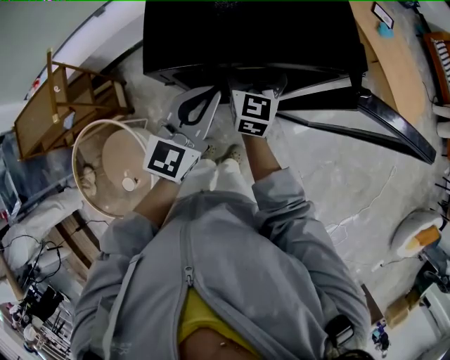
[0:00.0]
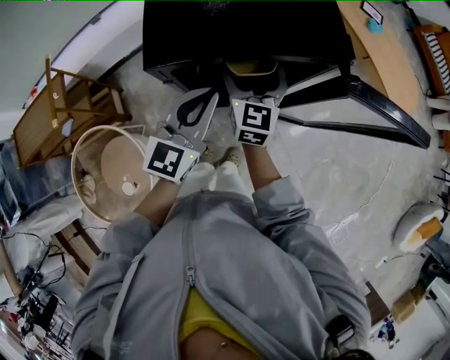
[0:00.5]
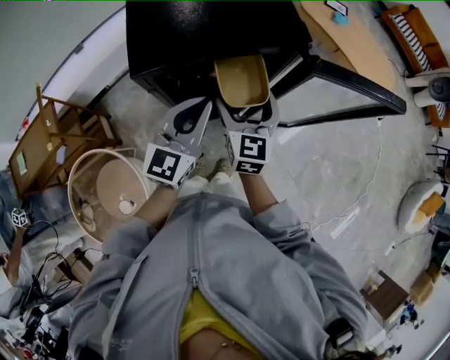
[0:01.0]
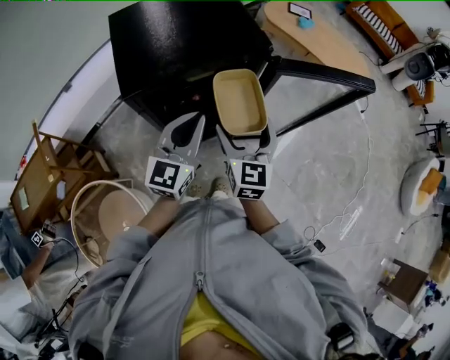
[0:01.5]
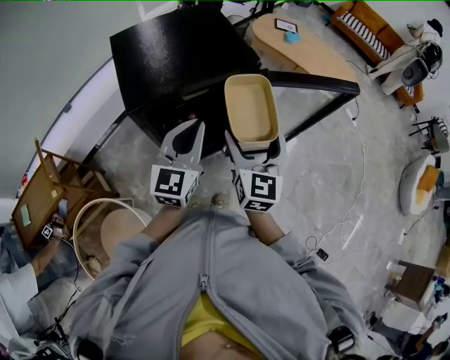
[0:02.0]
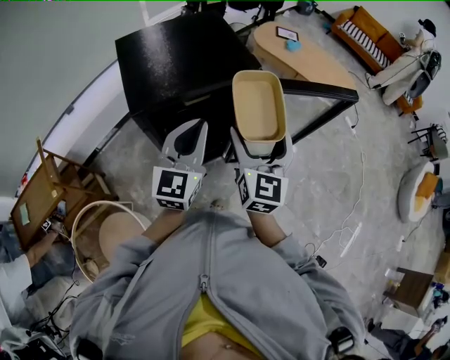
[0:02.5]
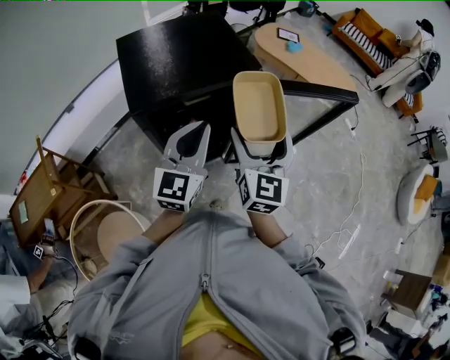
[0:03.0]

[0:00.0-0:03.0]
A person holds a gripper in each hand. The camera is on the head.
0:00.0 to 0:01.5: The right gripper moves backward, to the right and upward, approximately 25 cm. The left gripper travels to the right by approximately 5 cm.
0:01.5 to 0:03.0: The left gripper shifts about 5 cm upward. The right gripper heads upward, covering roughly 10 cm.

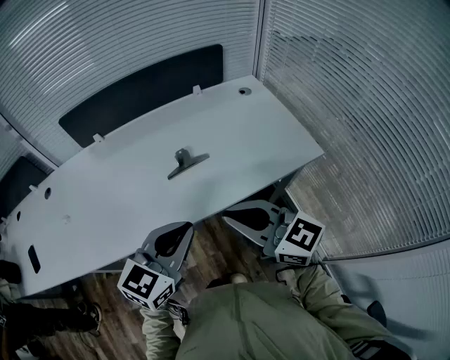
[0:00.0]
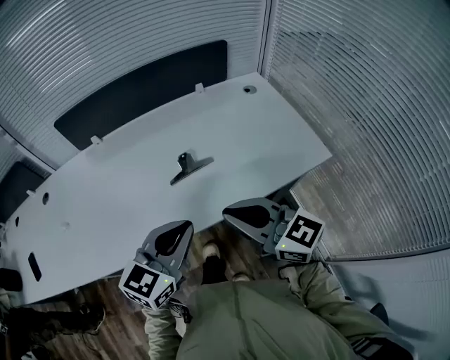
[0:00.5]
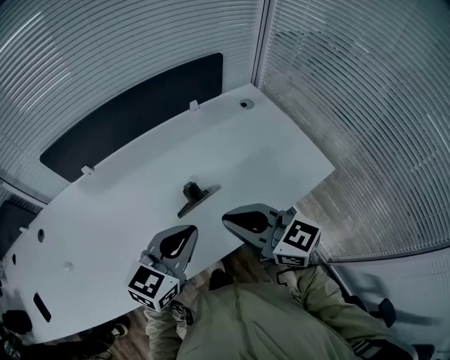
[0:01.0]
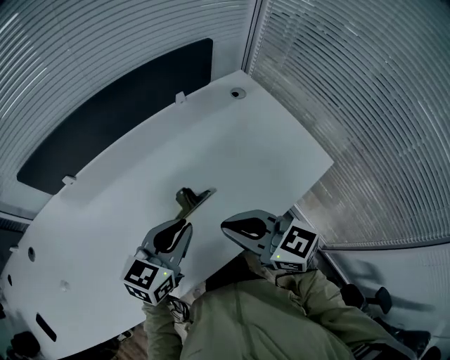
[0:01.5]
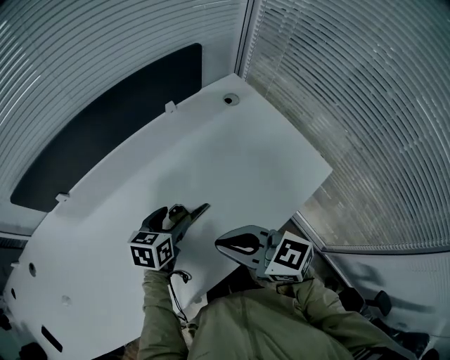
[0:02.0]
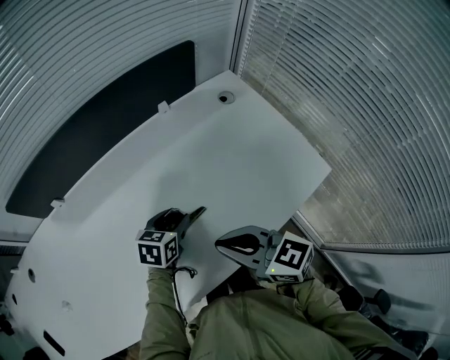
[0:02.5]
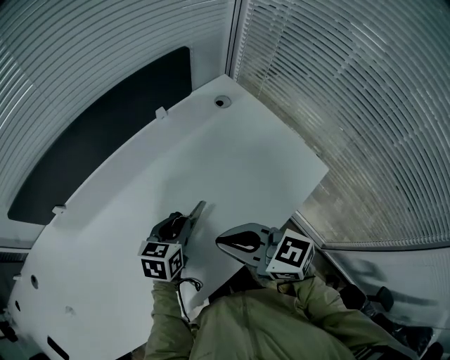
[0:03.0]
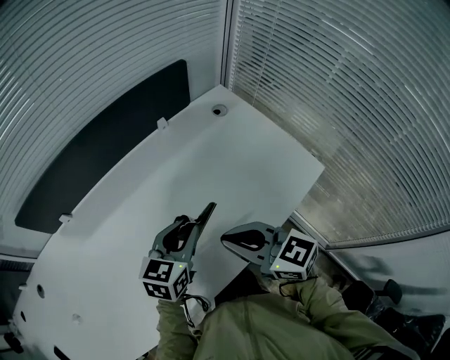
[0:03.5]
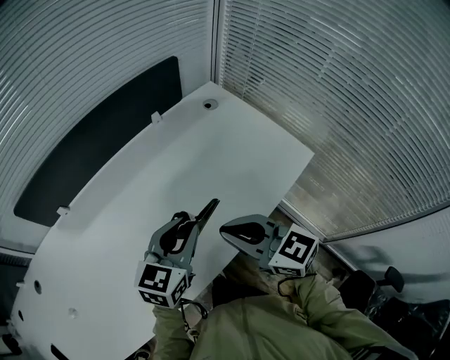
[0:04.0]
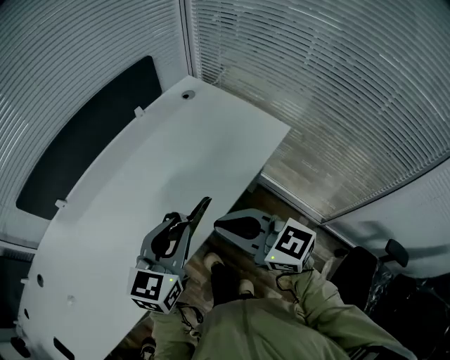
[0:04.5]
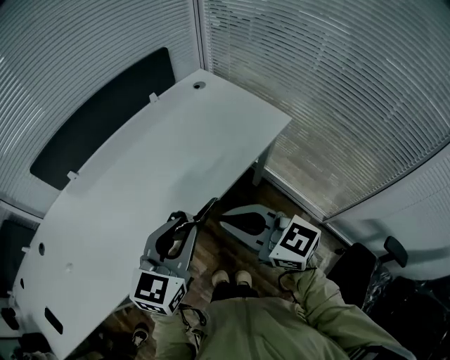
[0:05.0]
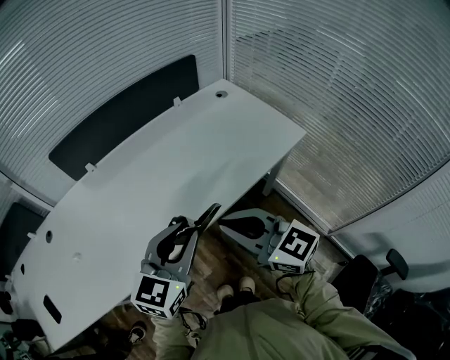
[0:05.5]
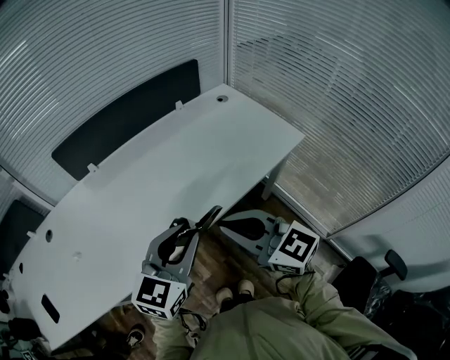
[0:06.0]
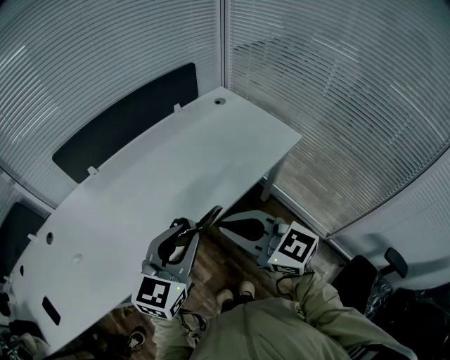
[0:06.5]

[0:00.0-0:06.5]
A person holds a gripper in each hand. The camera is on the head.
0:00.0 to 0:02.0: The left gripper heads forward and downward, covering some 35 cm, swivels about 30 degrees, and opens; the right gripper moves forward and downward, roughly 20 cm.
0:02.0 to 0:04.5: The right gripper moves backward and upward, some 15 cm, and swivels some 20 degrees; the left gripper heads backward and upward, covering some 25 cm, changes its angle by roughly 30 degrees, and closes.
0:04.5 to 0:06.5: The two grippers go some 15 cm backward, to the left and upward.

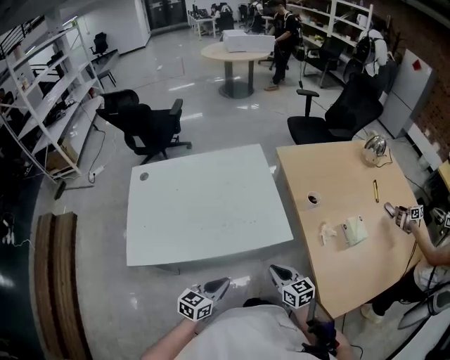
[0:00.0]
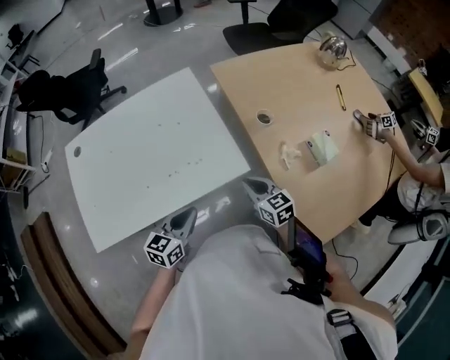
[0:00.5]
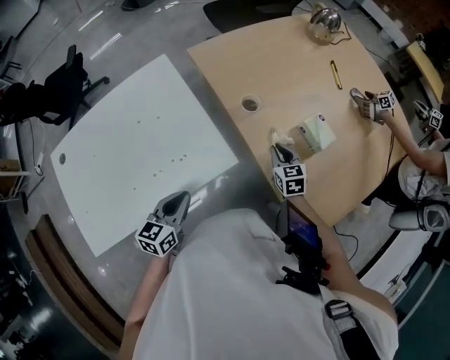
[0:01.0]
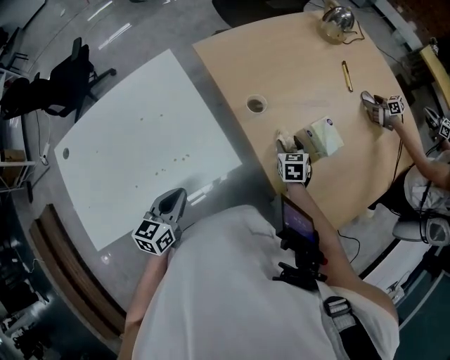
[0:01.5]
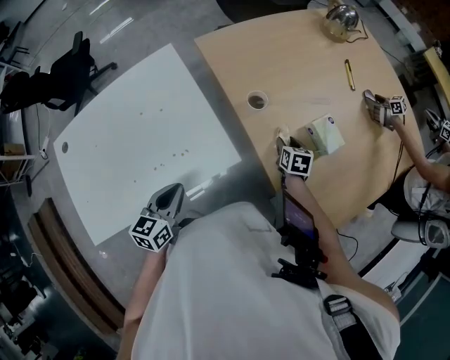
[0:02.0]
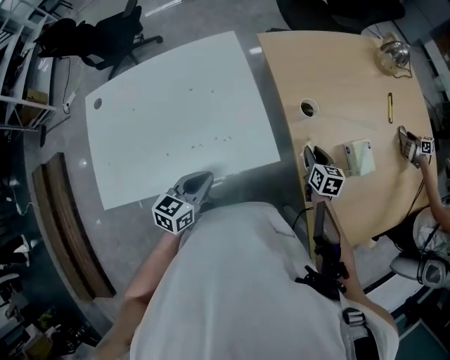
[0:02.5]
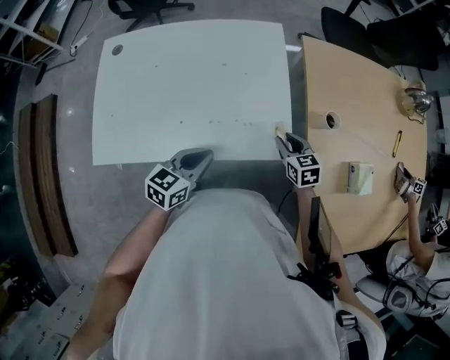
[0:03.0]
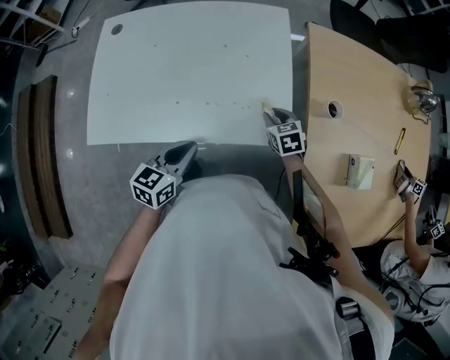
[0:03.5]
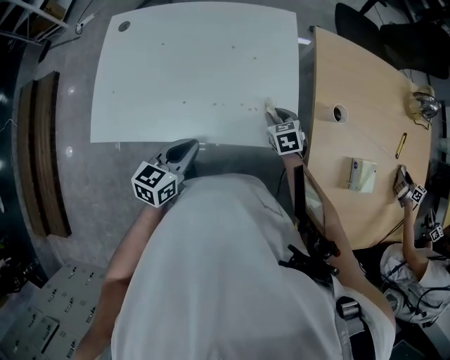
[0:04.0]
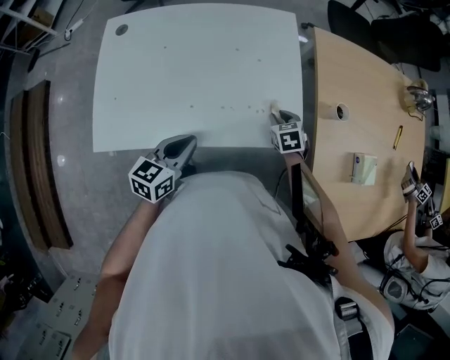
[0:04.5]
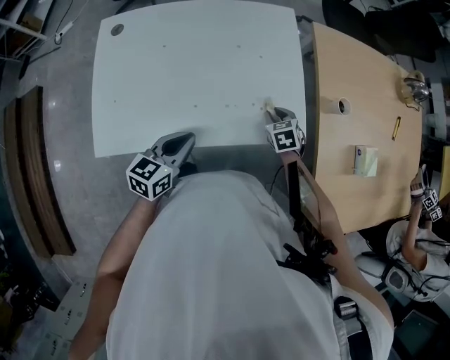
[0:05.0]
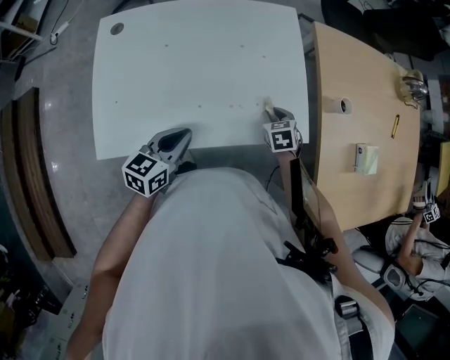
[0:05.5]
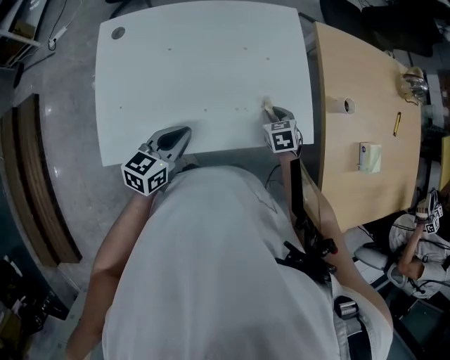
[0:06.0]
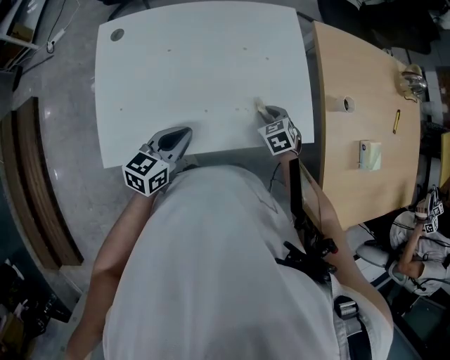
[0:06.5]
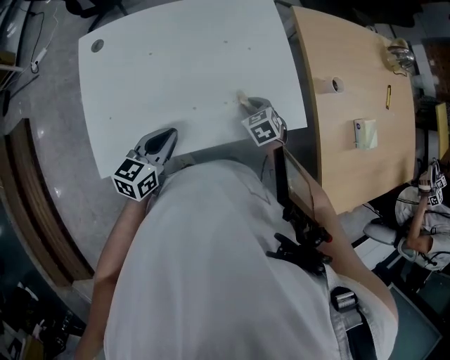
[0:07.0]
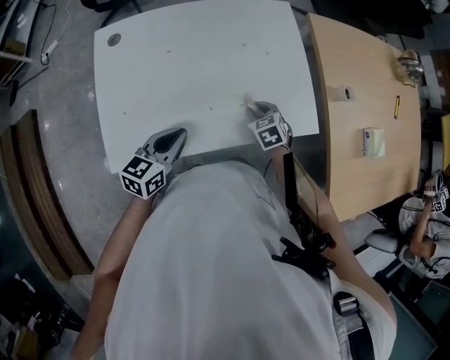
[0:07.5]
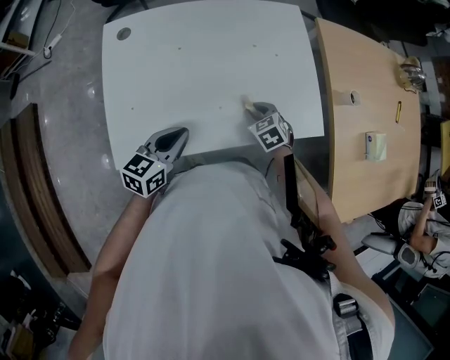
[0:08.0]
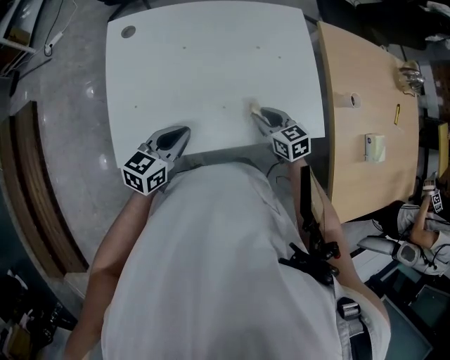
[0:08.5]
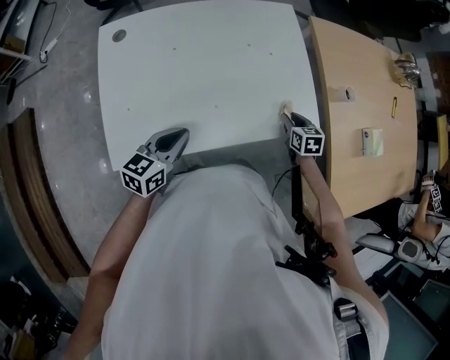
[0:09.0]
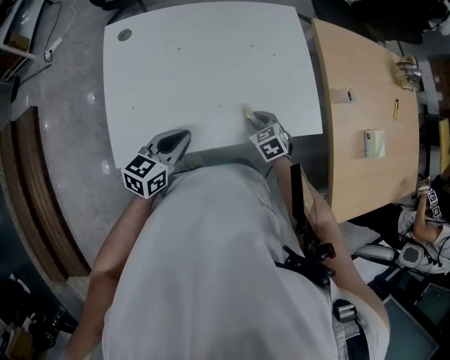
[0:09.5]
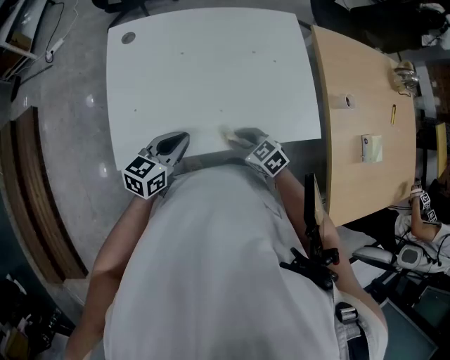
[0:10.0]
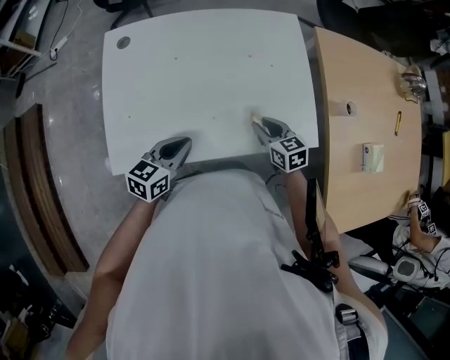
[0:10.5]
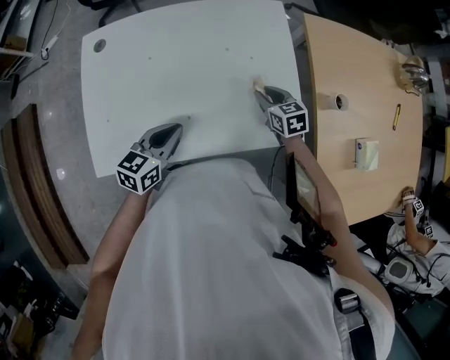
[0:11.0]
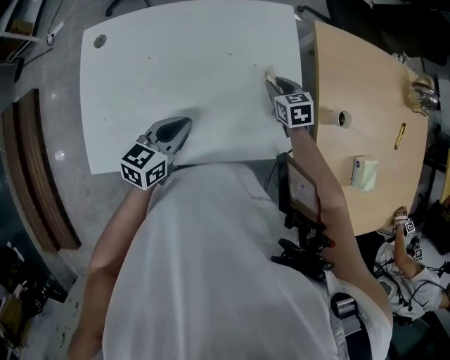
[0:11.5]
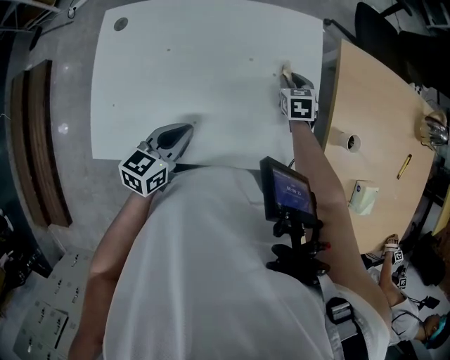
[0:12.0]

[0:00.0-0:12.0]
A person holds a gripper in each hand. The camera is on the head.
0:00.0 to 0:02.0: The right gripper ends up about 35 cm from where it was, swivels about 50 degrees, and opens up; the left gripper moves about 20 cm.
0:02.0 to 0:04.0: The left gripper changes place by approximately 15 cm. Meanwhile the right gripper changes place by approximately 30 cm, and rotates around the line of its fingers by roughly 50 degrees, counterclockwise from behind.
0:04.0 to 0:06.0: The right gripper moves to the left, approximately 5 cm; the left gripper travels to the left by roughly 15 cm.
0:06.0 to 0:08.0: The right gripper is displaced to the left by approximately 10 cm, while the left gripper is displaced to the left by some 5 cm.
0:08.0 to 0:10.0: The right gripper moves roughly 10 cm, and rotates roughly 20 degrees.
0:10.0 to 0:12.0: The left gripper moves to the right and forward, about 15 cm. Meanwhile the right gripper travels forward and to the right by approximately 40 cm, and changes its angle by roughly 30 degrees.

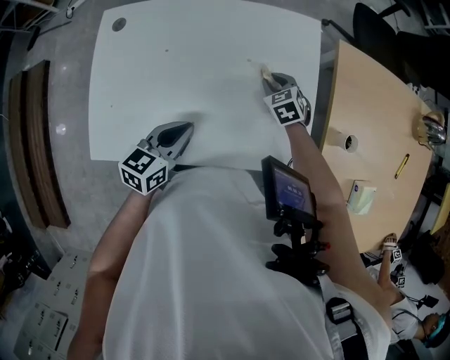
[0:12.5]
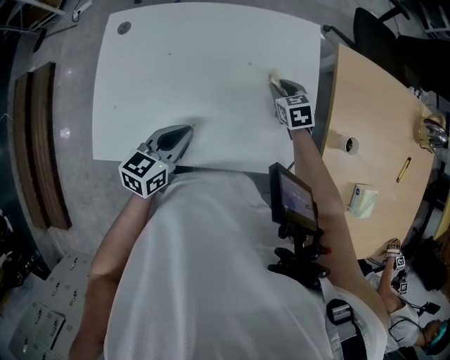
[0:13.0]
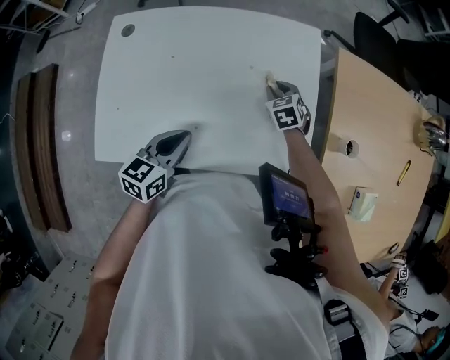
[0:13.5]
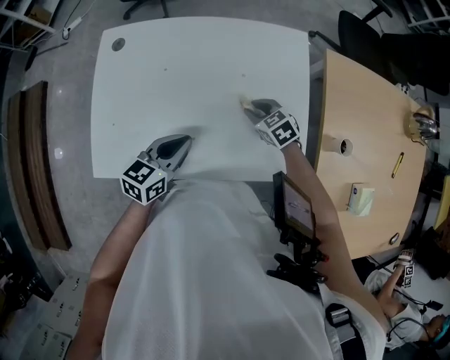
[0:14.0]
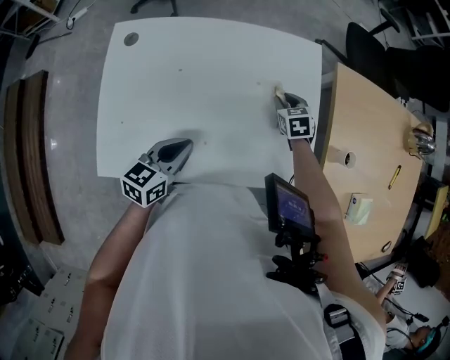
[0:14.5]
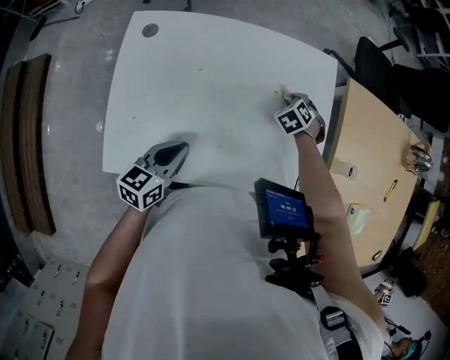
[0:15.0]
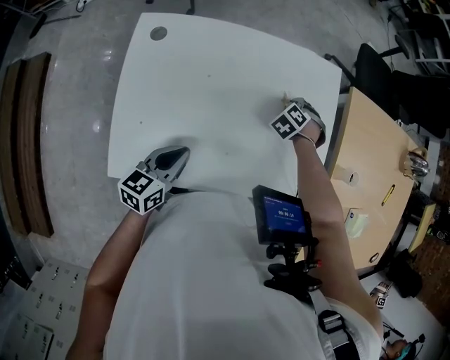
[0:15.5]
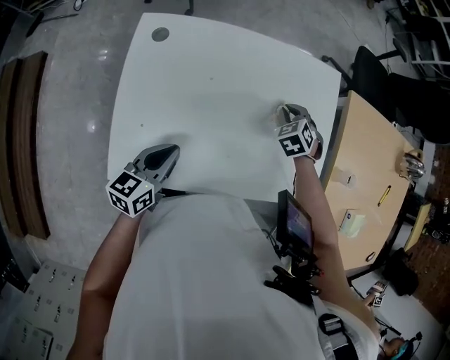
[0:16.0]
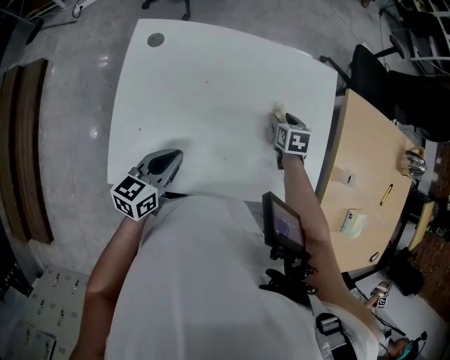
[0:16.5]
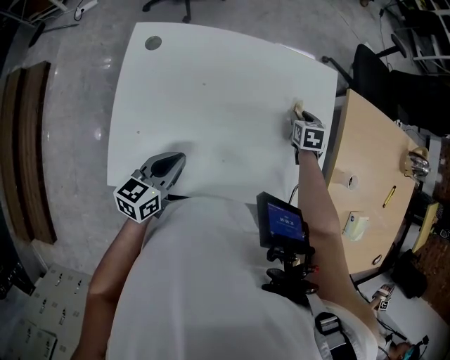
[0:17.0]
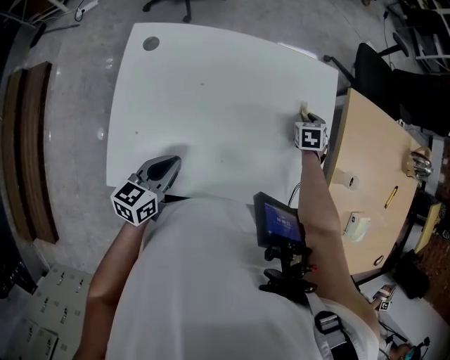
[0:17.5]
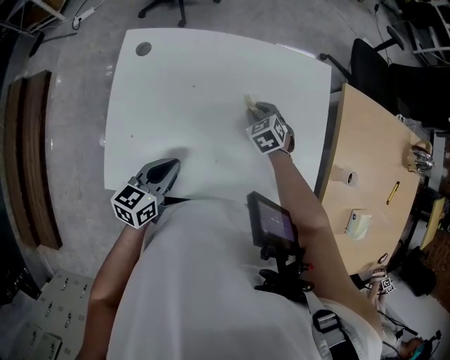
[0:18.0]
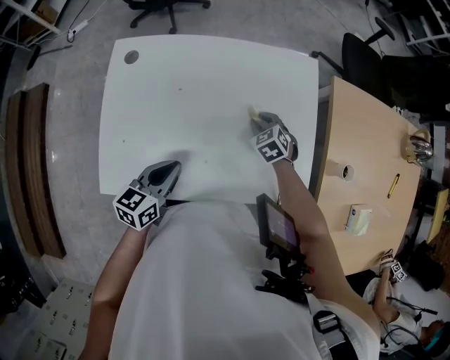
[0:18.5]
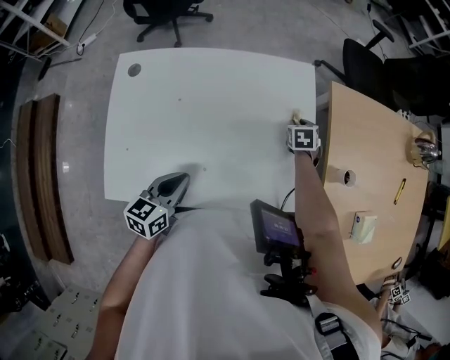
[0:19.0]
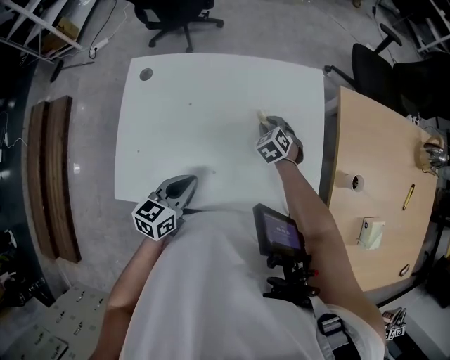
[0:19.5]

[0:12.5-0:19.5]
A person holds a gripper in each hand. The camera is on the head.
0:12.5 to 0:14.5: The right gripper travels backward and back again, approximately 5 cm each way.
0:14.5 to 0:16.0: Both grippers travel together to the left, roughly 10 cm. The right gripper rotates approximately 30 degrees.
0:16.0 to 0:17.5: The right gripper shifts about 15 cm to the right and forward, rotates approximately 30 degrees, and opens, then closes once more.
0:17.5 to 0:19.5: The right gripper goes left and right, approximately 20 cm each way, reversing 2 times, and swivels approximately 30 degrees, while the left gripper travels to the right by roughly 10 cm.
